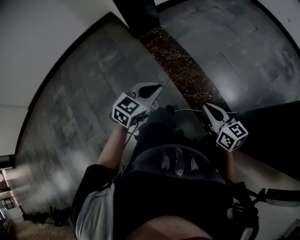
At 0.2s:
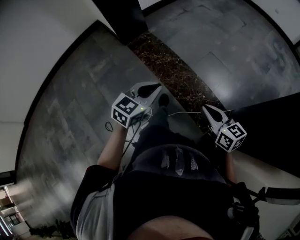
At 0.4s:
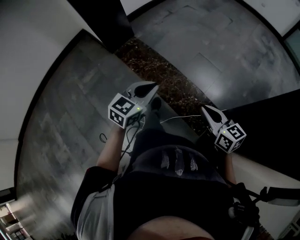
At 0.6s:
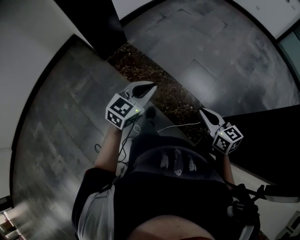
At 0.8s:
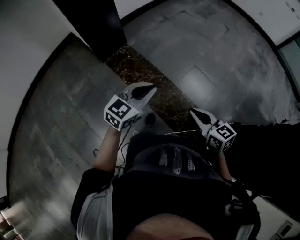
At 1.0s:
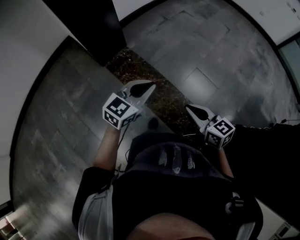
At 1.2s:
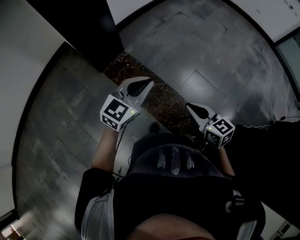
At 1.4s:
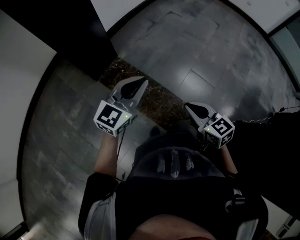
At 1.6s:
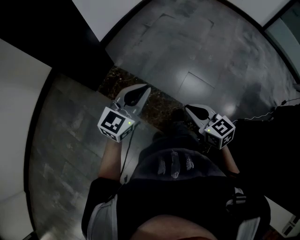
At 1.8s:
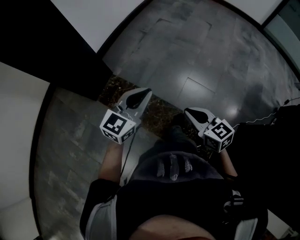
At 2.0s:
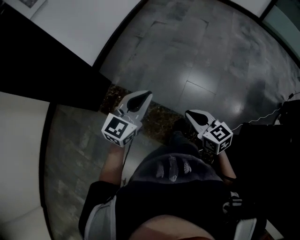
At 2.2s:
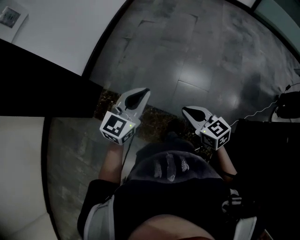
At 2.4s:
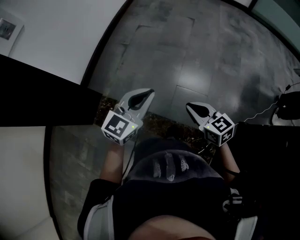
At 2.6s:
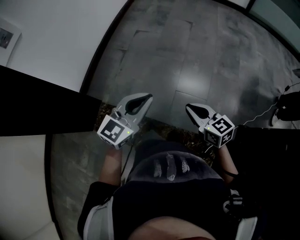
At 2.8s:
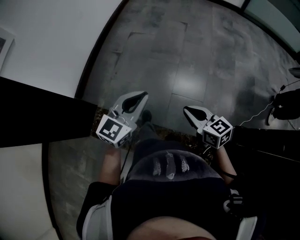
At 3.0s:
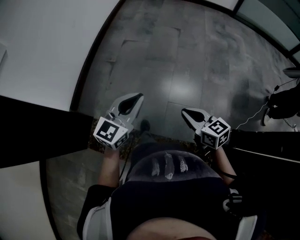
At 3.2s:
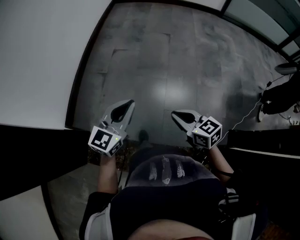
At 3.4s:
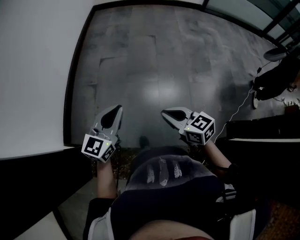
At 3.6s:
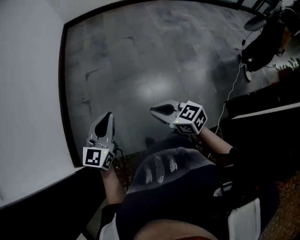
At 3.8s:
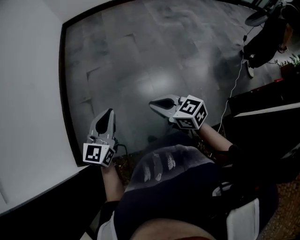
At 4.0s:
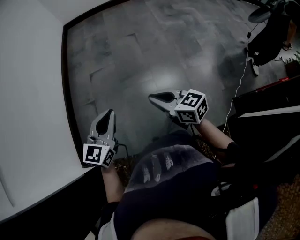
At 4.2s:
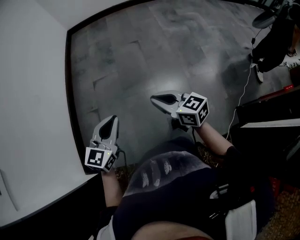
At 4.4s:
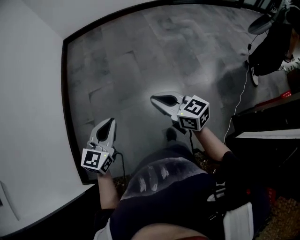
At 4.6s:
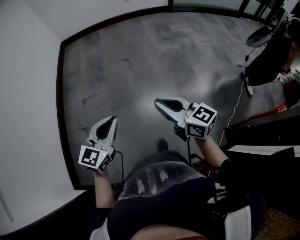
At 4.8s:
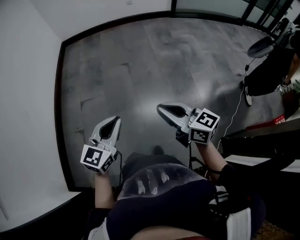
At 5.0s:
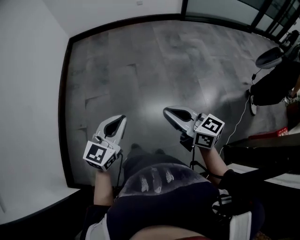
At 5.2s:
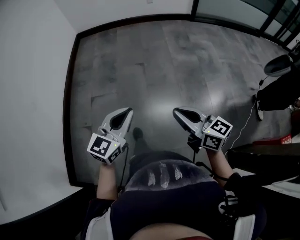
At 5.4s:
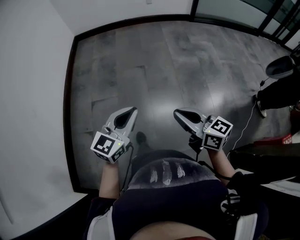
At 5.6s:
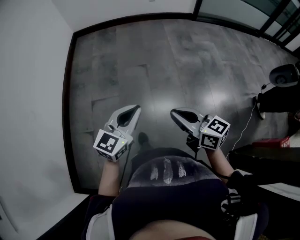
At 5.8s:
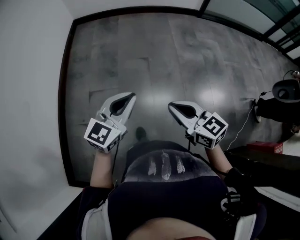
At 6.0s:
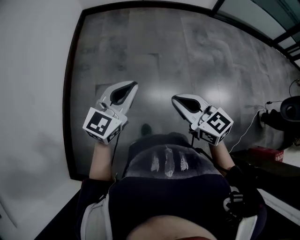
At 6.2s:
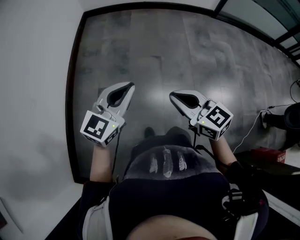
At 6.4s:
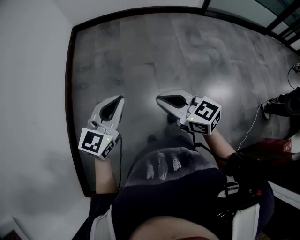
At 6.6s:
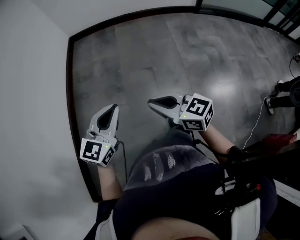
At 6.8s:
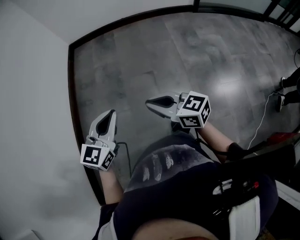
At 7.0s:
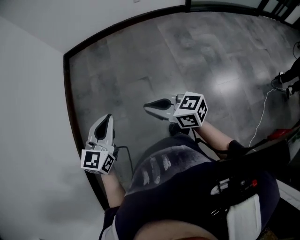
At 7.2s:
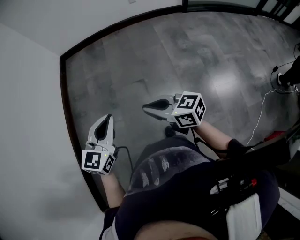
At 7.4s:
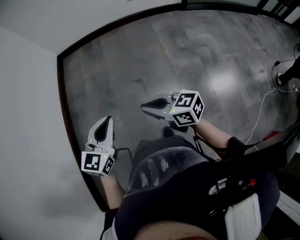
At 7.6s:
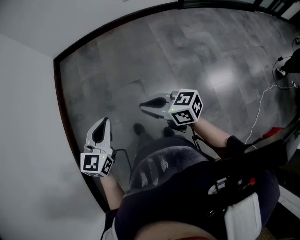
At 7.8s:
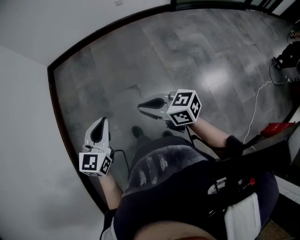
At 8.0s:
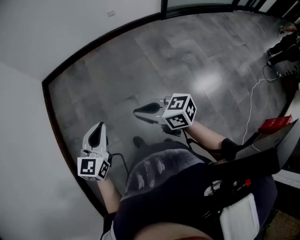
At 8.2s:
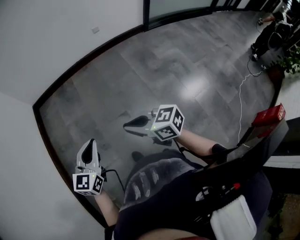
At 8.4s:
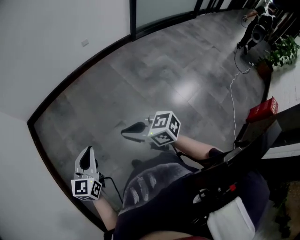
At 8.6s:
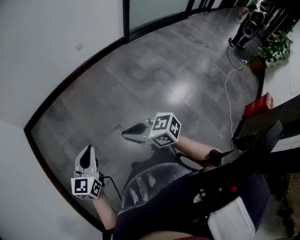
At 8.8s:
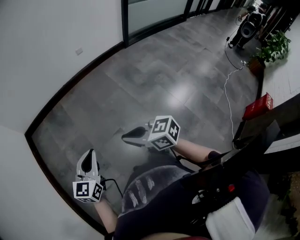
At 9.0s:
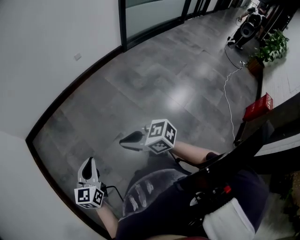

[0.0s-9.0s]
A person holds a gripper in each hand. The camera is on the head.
0.0s to 1.6s: The pair of grippers is taken forward, some 50 cm. The left gripper rotates roughly 30 degrees. Meanwhile the right gripper rotates roughly 20 degrees.
1.6s to 3.0s: The two grippers travel together, forward and to the right, some 40 cm. The right gripper changes its angle by about 20 degrees.
3.0s to 4.4s: The grippers both shift forward by approximately 35 cm. The right gripper turns by approximately 20 degrees.
4.4s to 6.0s: Both grippers move forward, approximately 35 cm.
6.0s to 7.6s: The two grippers go approximately 30 cm forward and to the right. The right gripper swivels some 20 degrees.
7.6s to 9.0s: Both grippers move forward and to the left, approximately 25 cm.

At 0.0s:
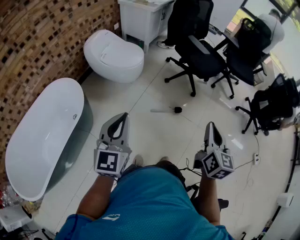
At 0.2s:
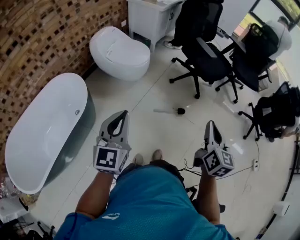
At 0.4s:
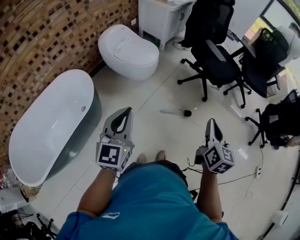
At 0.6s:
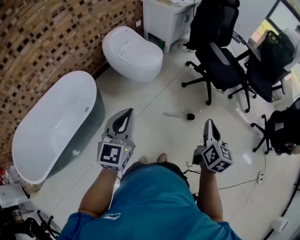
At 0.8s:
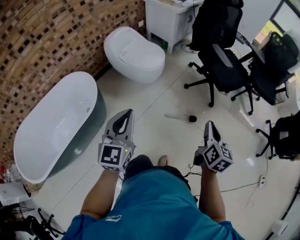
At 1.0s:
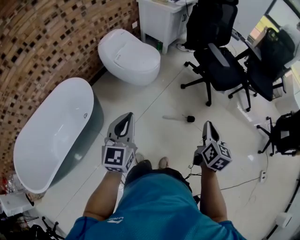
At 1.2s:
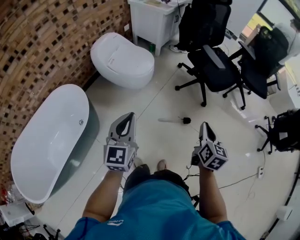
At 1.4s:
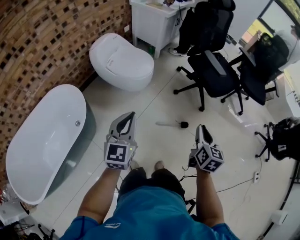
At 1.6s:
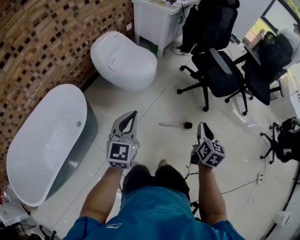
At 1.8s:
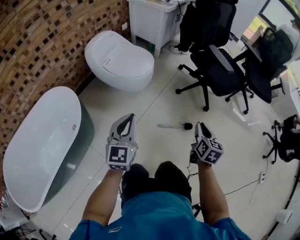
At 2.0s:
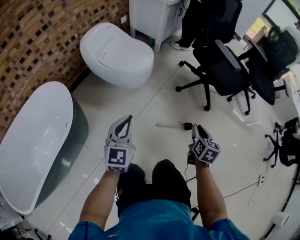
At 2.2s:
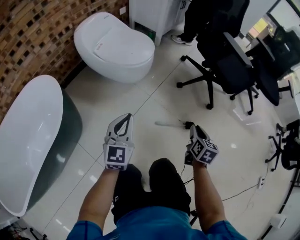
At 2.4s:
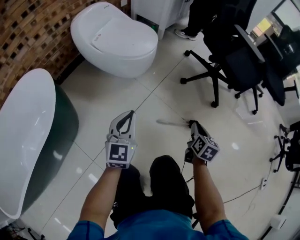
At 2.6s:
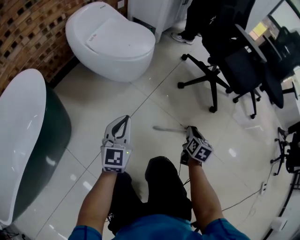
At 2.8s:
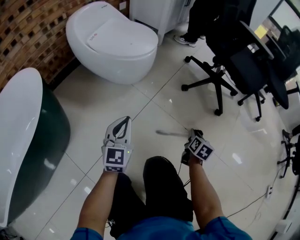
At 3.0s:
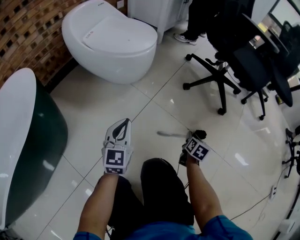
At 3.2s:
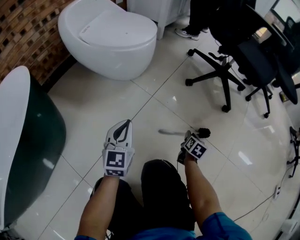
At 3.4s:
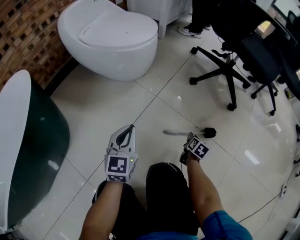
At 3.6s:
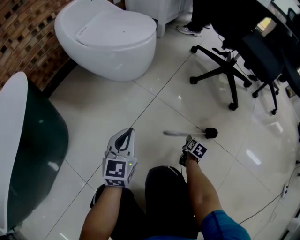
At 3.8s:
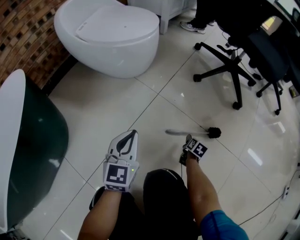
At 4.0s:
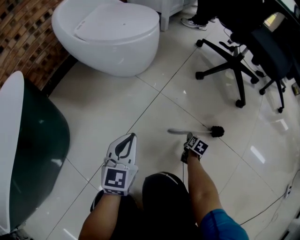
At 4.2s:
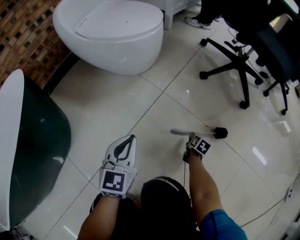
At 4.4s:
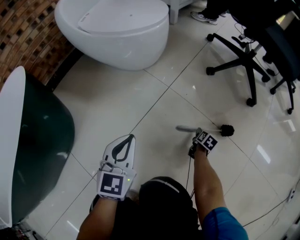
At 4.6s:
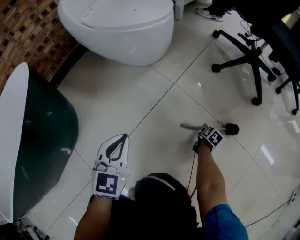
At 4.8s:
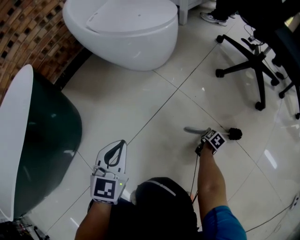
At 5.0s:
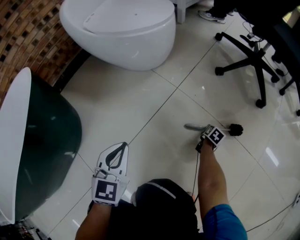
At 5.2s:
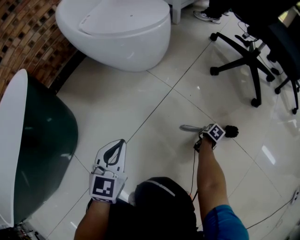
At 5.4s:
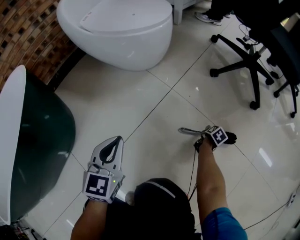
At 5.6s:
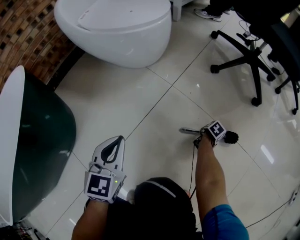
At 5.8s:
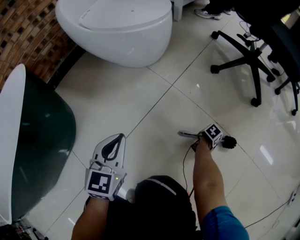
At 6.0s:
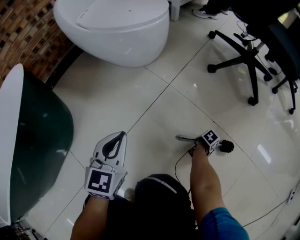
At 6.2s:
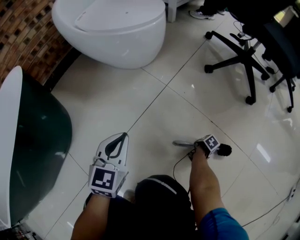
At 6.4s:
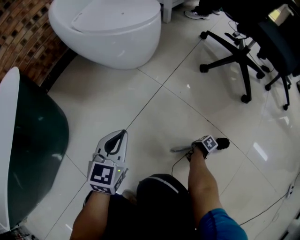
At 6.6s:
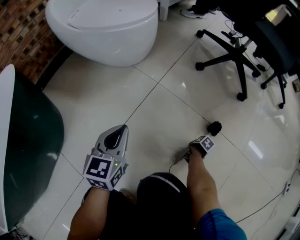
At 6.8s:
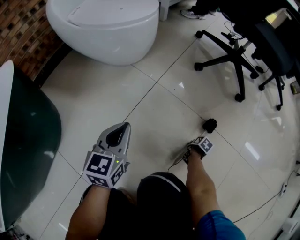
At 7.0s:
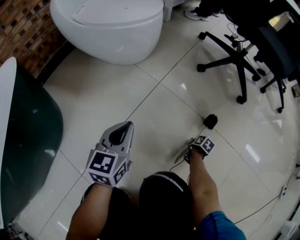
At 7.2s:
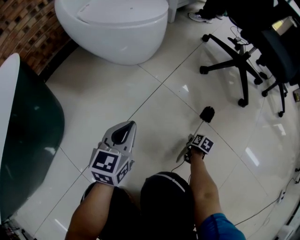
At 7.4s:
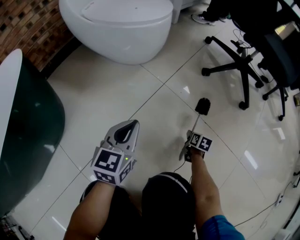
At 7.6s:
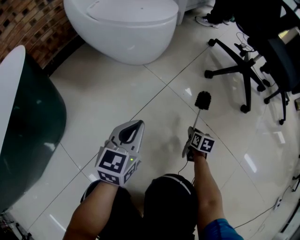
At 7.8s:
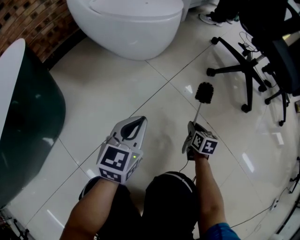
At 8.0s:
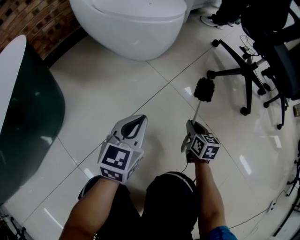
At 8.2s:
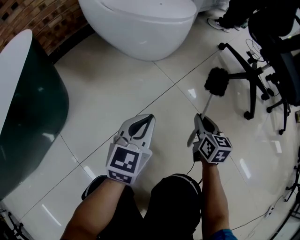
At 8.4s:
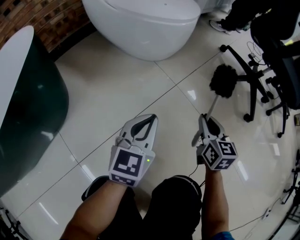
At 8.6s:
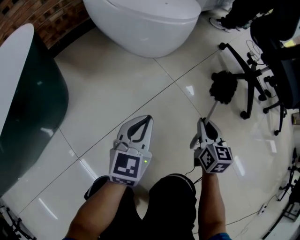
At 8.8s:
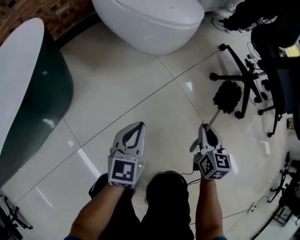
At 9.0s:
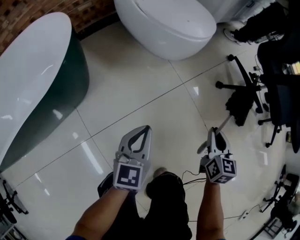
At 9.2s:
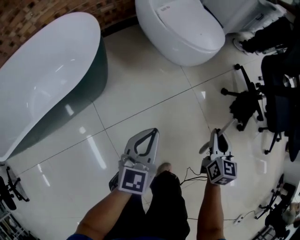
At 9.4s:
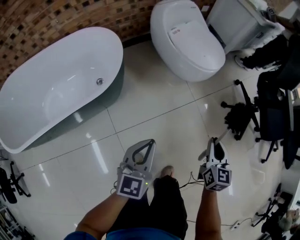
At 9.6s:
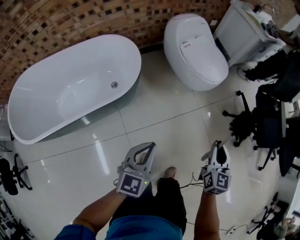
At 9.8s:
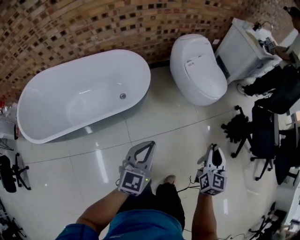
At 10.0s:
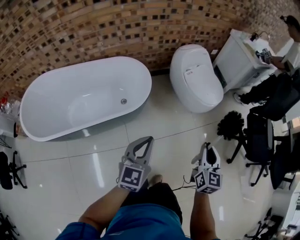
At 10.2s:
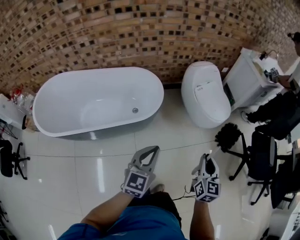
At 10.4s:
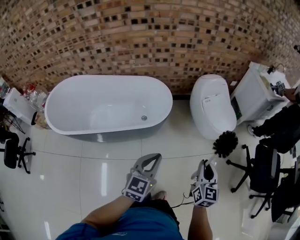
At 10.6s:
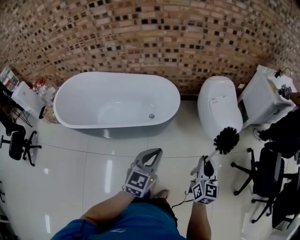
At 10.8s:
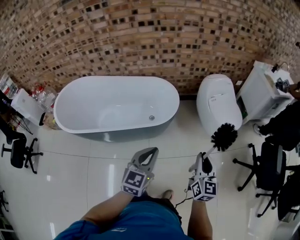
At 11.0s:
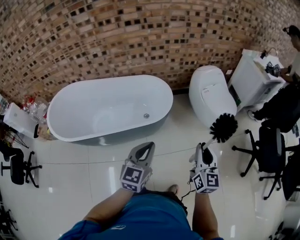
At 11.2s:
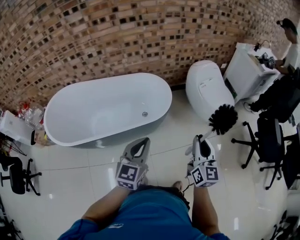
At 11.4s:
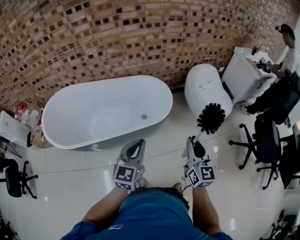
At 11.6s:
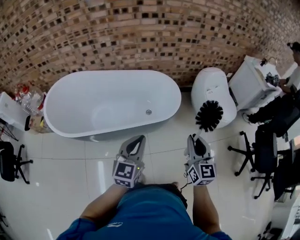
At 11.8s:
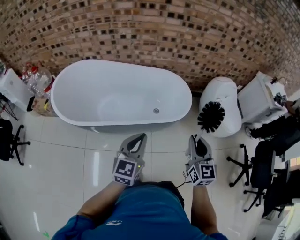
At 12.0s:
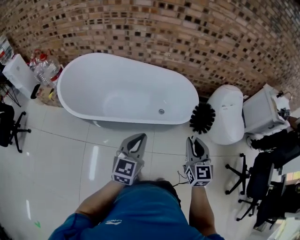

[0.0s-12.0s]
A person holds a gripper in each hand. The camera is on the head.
0.0s to 1.6s: The two grippers go roughly 25 cm forward and downward.
1.6s to 3.0s: The two grippers go some 60 cm downward.
3.0s to 4.4s: The right gripper is displaced downward by approximately 25 cm, while the left gripper moves downward, approximately 10 cm.
4.4s to 6.0s: The right gripper changes place by about 10 cm, and swivels roughly 30 degrees.
6.0s to 7.6s: The right gripper changes place by roughly 15 cm, turns by roughly 50 degrees, and closes its fingers.
7.6s to 9.0s: The left gripper travels upward, to the left and backward by some 20 cm. The right gripper travels upward by about 40 cm, and swivels approximately 30 degrees.
9.0s to 10.4s: The left gripper goes approximately 50 cm upward, and changes its angle by roughly 20 degrees. The right gripper moves upward and to the left, about 60 cm, and changes its angle by approximately 30 degrees.
10.4s to 12.0s: Both grippers travel together to the left, approximately 40 cm. The right gripper rotates roughly 30 degrees.

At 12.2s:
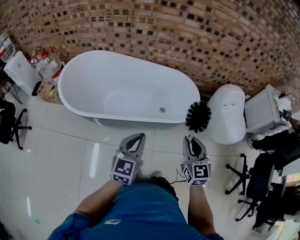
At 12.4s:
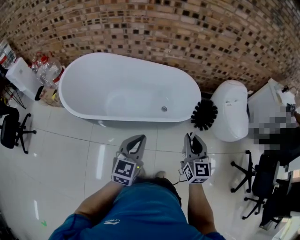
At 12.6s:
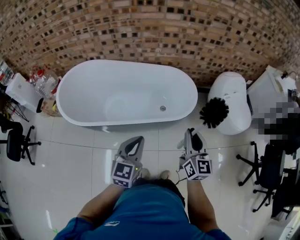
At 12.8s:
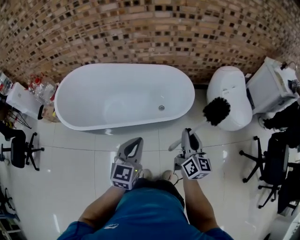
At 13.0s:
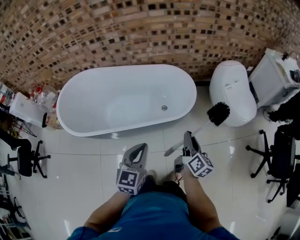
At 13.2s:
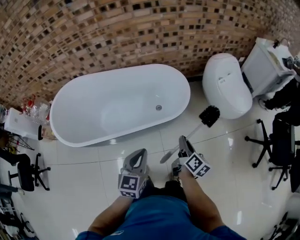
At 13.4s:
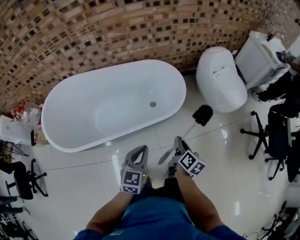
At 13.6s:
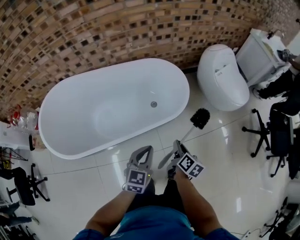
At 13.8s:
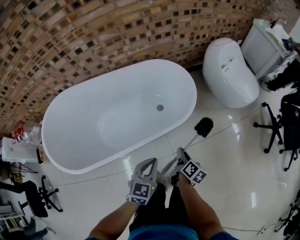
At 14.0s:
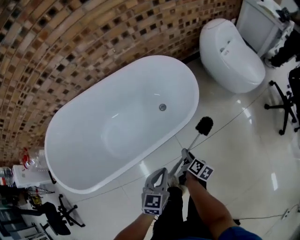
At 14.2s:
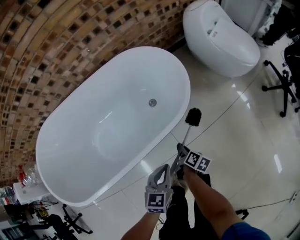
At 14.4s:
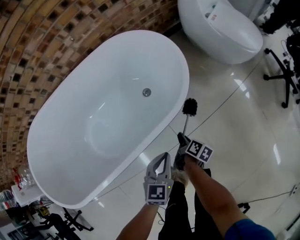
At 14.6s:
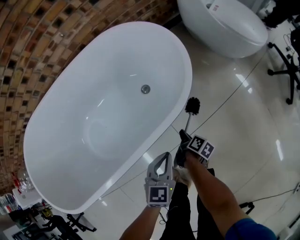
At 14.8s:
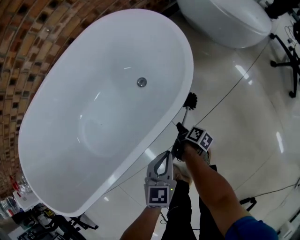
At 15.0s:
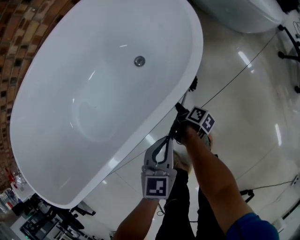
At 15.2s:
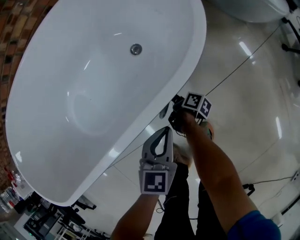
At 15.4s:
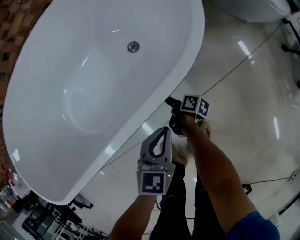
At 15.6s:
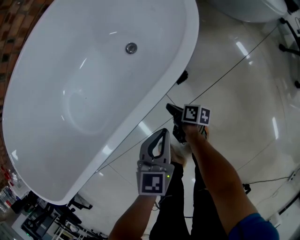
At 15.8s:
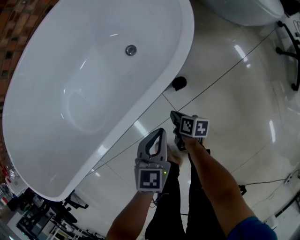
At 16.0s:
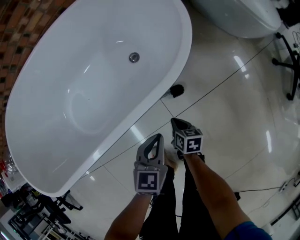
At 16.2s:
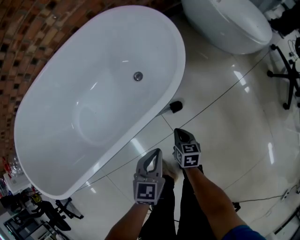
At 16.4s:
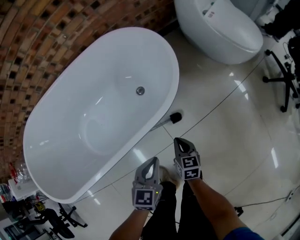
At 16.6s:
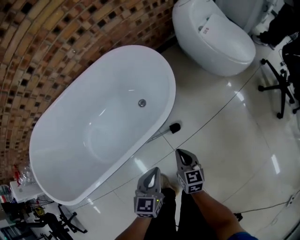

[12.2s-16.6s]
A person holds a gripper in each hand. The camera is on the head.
12.2s to 13.6s: The right gripper goes some 25 cm downward and forward, and rotates around the line of its fingers by roughly 70 degrees, clockwise from behind. The left gripper is displaced downward, forward and to the right by some 20 cm, and changes its angle by roughly 30 degrees.
13.6s to 15.2s: The two grippers go about 50 cm downward. The right gripper swivels some 40 degrees, and opens up.
15.2s to 16.6s: The right gripper is displaced upward by approximately 35 cm, twists some 70 degrees counterclockwise, seen from behind, and closes up, while the left gripper moves upward, some 20 cm.
